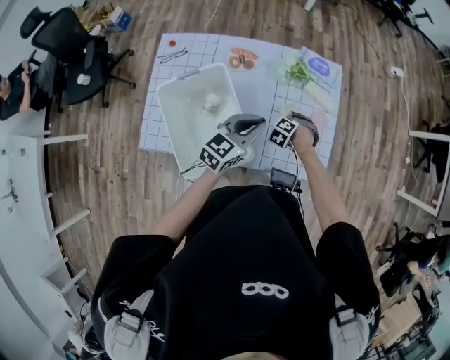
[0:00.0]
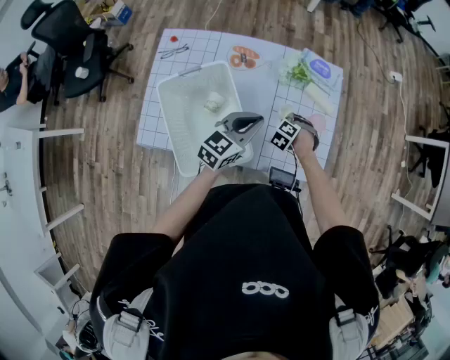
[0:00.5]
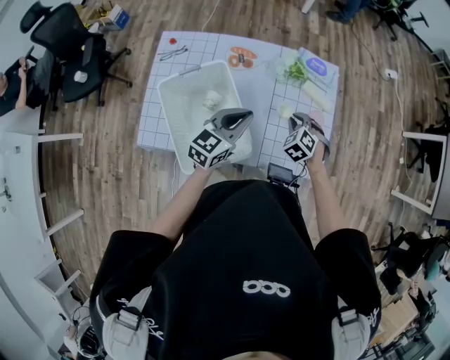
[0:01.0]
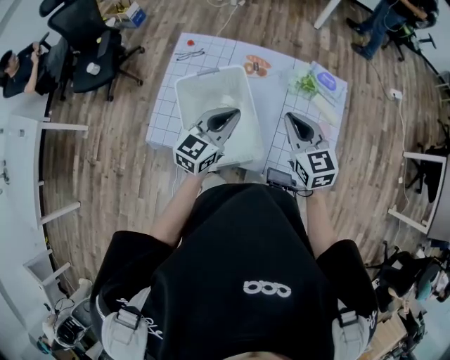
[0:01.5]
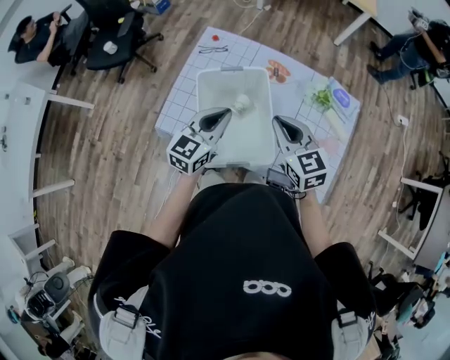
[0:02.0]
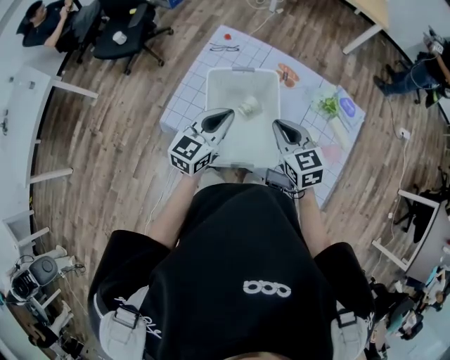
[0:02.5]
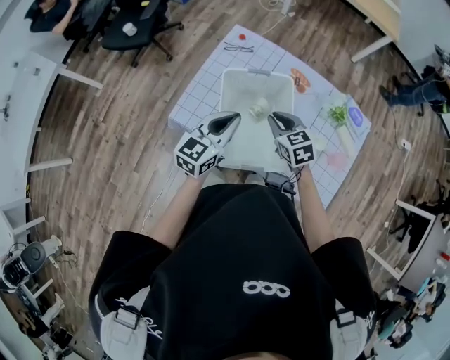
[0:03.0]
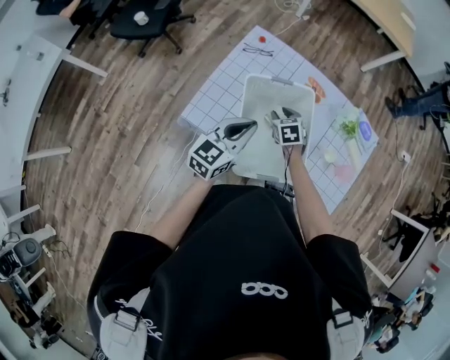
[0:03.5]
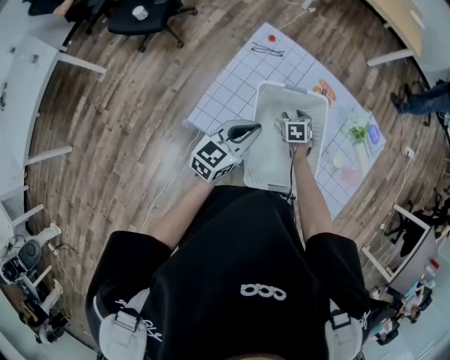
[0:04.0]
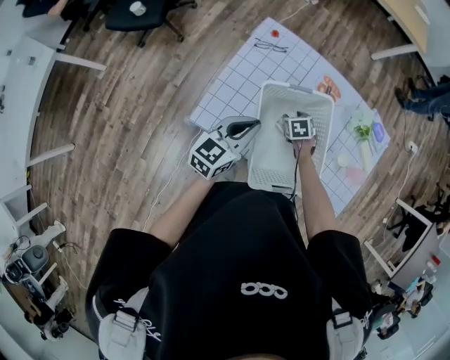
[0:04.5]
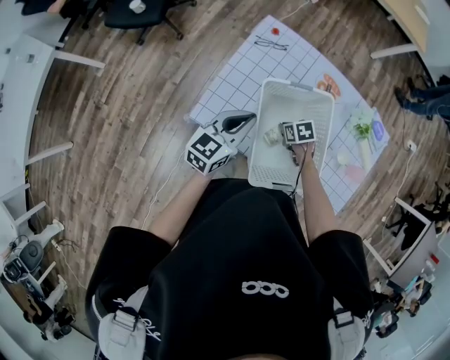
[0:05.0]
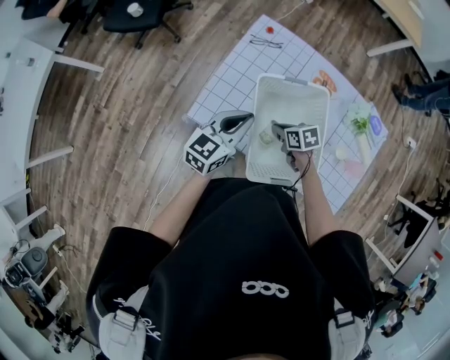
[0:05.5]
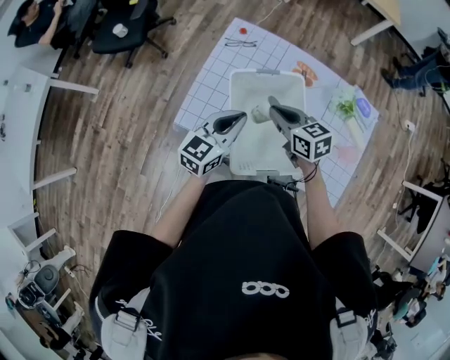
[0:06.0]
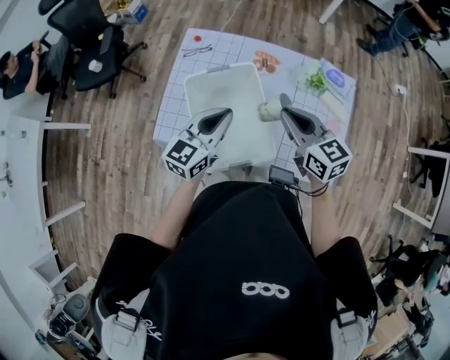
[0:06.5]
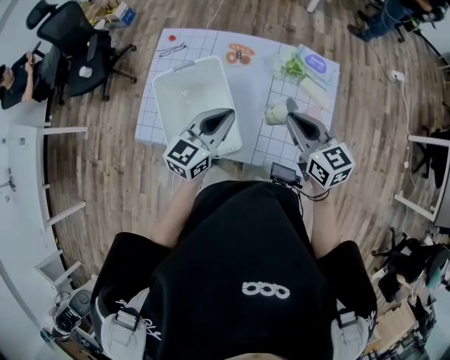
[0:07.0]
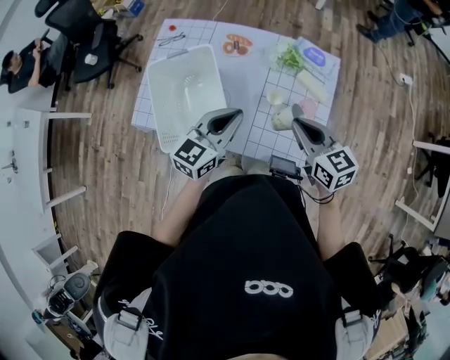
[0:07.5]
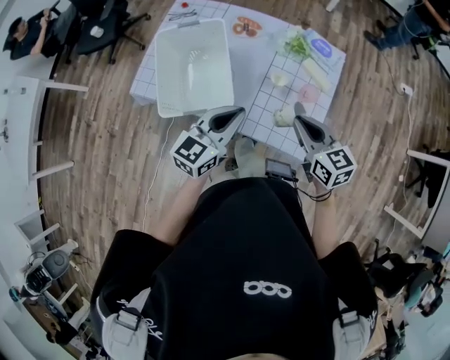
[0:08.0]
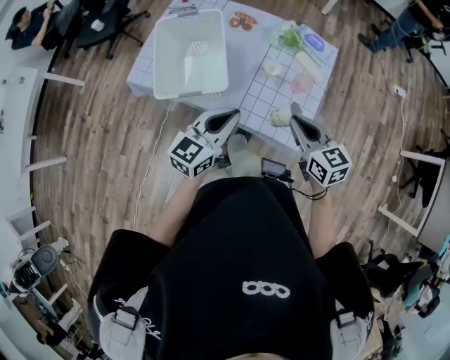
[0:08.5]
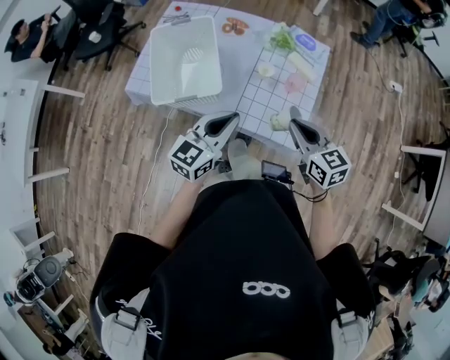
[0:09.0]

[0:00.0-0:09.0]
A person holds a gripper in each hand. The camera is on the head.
0:00.0 to 0:02.0: The right gripper heads upward, covering approximately 35 cm, and angles its fingers upward, by approximately 50 degrees, while the left gripper changes place by roughly 20 cm, and changes its angle by approximately 30 degrees.
0:02.0 to 0:04.5: The right gripper shifts about 30 cm downward, points its fingers some 50 degrees further downward, and opens its fingers. Meanwhile the left gripper is displaced to the left and downward by approximately 15 cm.
0:04.5 to 0:07.0: The left gripper ends up roughly 30 cm from where it was. Meanwhile the right gripper is displaced upward by some 30 cm, points its fingers about 50 degrees further upward, and closes its fingers.
0:07.0 to 0:09.0: Both grippers move backward and to the right, roughly 20 cm.

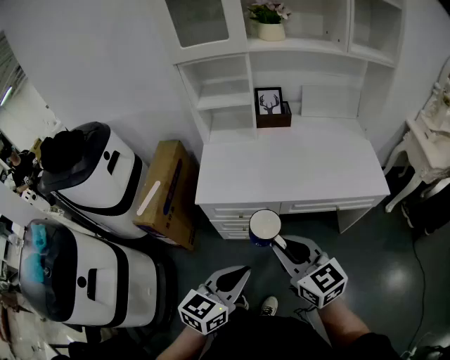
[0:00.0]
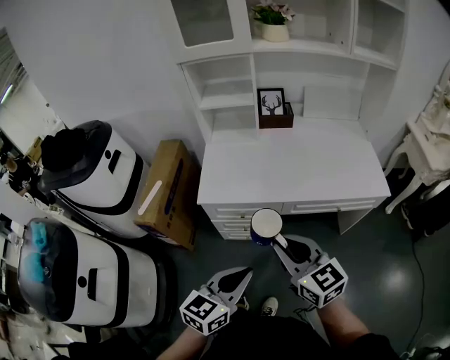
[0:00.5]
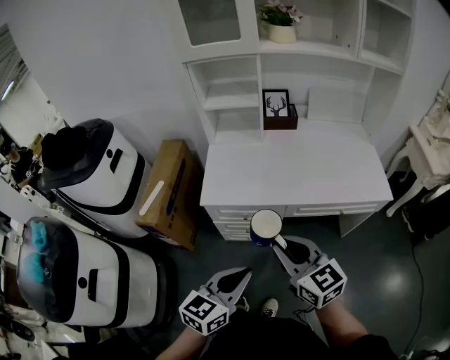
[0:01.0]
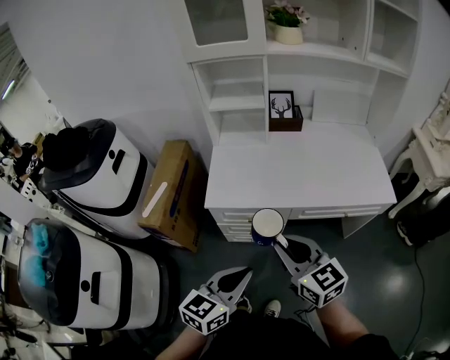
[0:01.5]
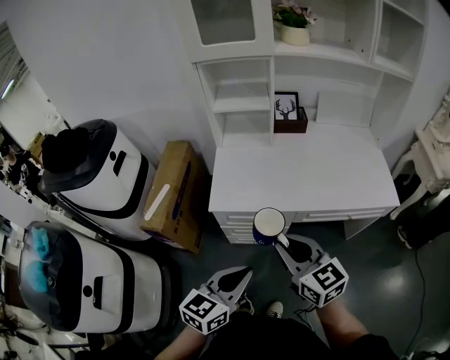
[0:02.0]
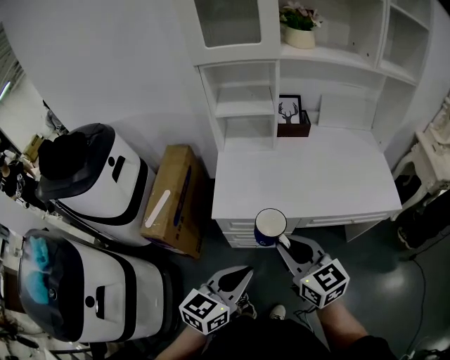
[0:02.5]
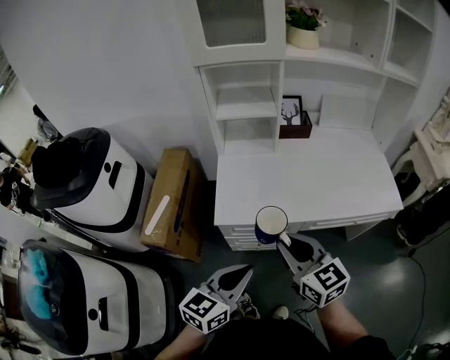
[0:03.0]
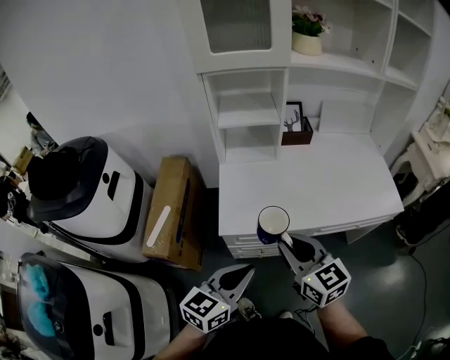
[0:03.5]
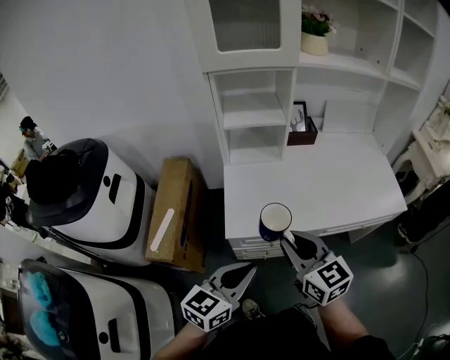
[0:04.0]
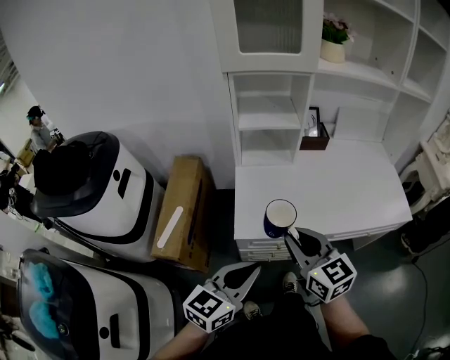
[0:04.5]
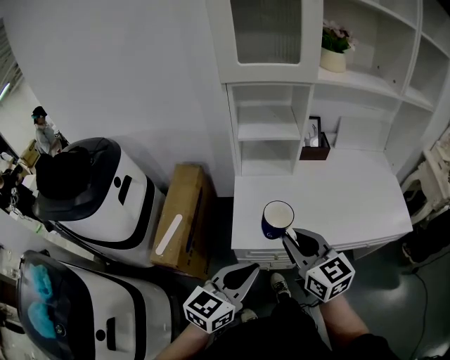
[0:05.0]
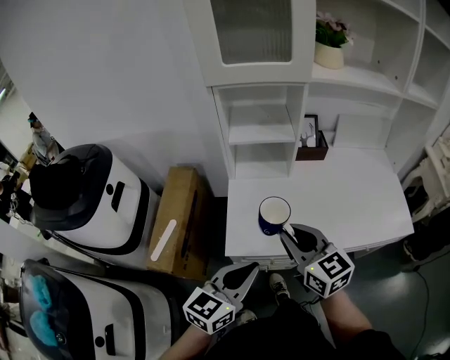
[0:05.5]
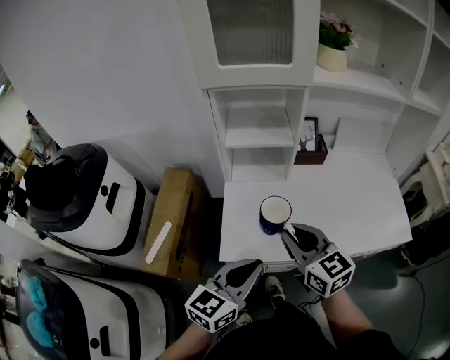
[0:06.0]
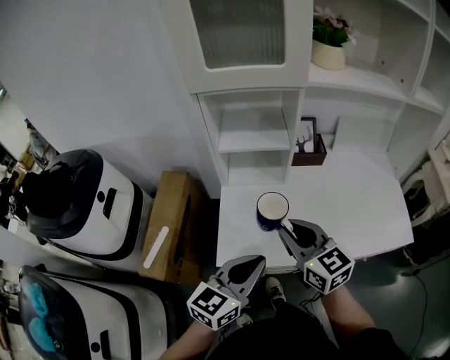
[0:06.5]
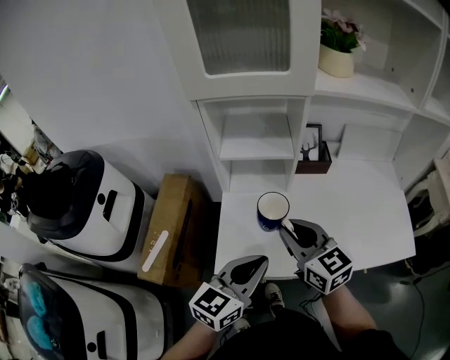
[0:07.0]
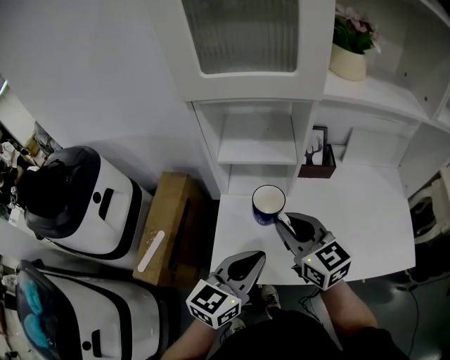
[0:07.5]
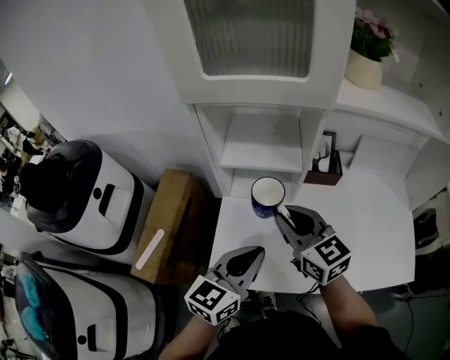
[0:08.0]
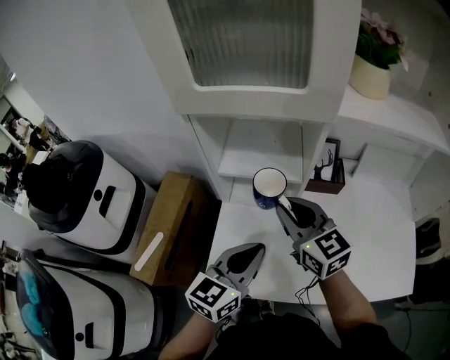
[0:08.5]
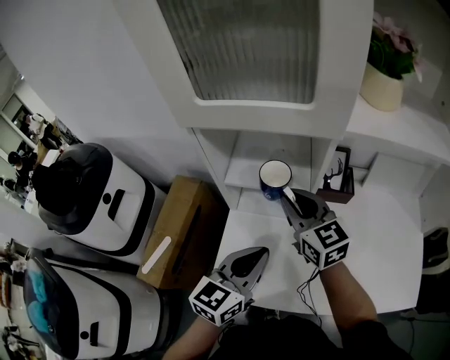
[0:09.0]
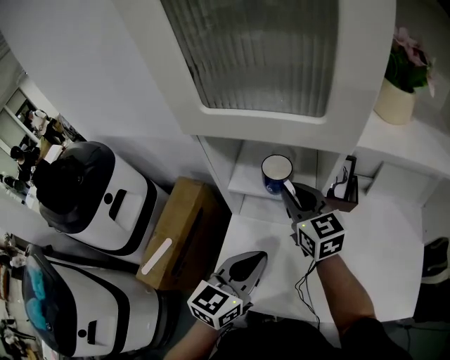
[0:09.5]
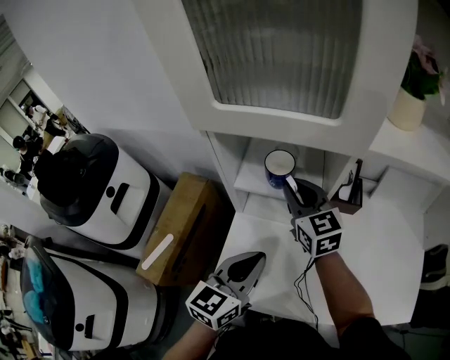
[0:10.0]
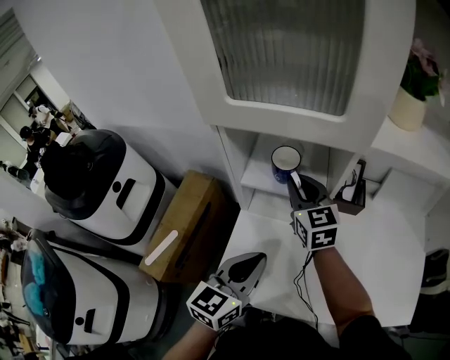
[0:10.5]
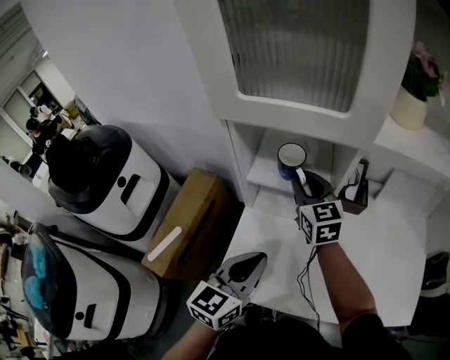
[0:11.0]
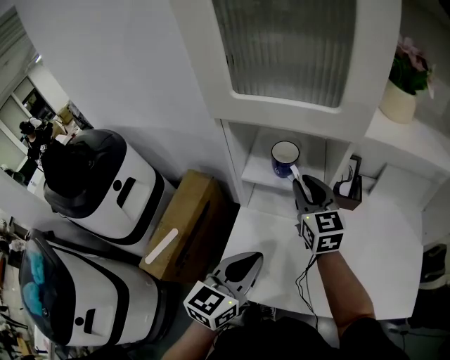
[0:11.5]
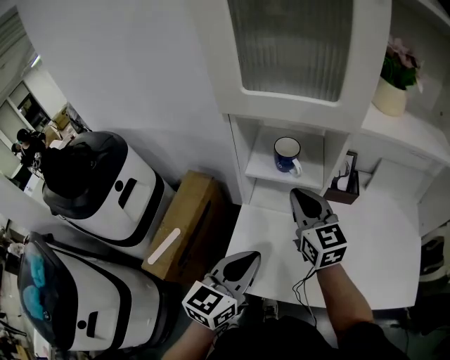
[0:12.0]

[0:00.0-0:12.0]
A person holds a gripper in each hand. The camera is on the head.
0:00.0 to 0:02.0: The left gripper heads to the left, covering about 5 cm. Meanwhile the right gripper goes about 10 cm to the left and forward.
0:02.0 to 0:04.0: The two grippers go about 15 cm forward and to the left.
0:04.0 to 0:06.0: Both grippers move forward, some 10 cm.
0:06.0 to 0:08.0: The two grippers go approximately 15 cm forward.
0:08.0 to 0:10.0: The left gripper heads forward, covering approximately 10 cm, while the right gripper shifts roughly 15 cm forward.
0:10.0 to 0:12.0: The two grippers go some 10 cm backward.

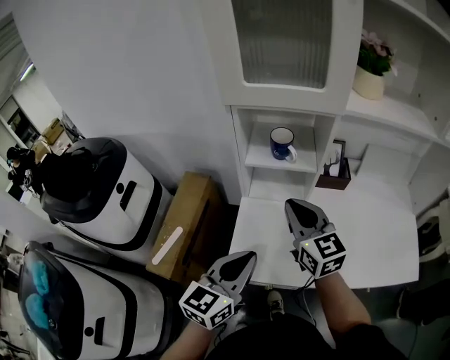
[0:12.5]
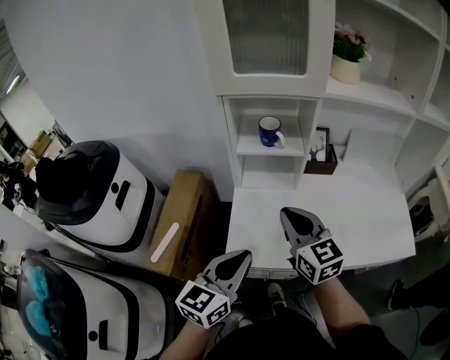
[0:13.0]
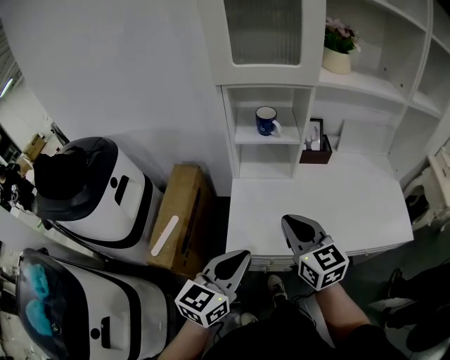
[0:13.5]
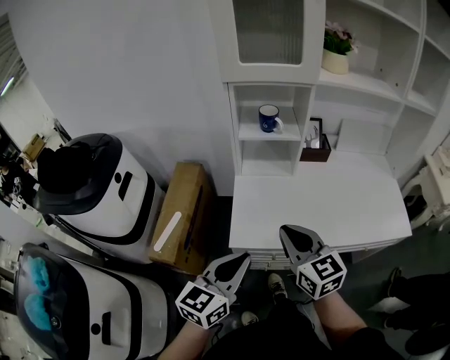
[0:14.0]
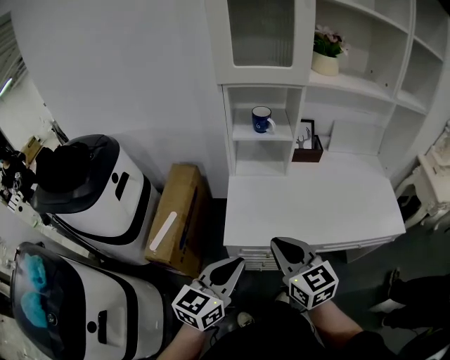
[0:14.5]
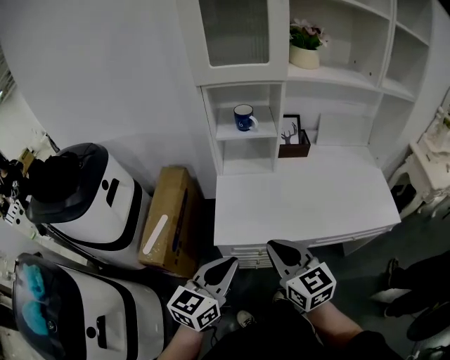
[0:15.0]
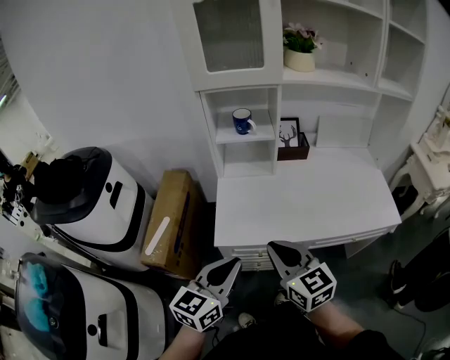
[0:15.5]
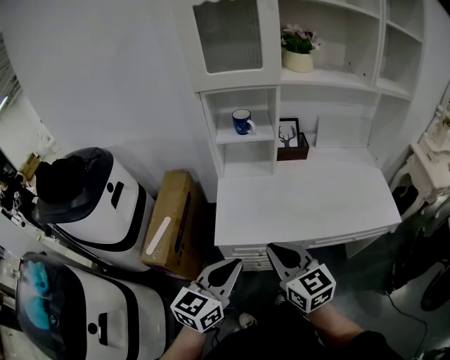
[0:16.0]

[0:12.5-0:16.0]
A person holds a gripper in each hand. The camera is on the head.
0:12.5 to 0:14.5: Both grippers travel together backward, approximately 20 cm.
0:14.5 to 0:16.0: The right gripper changes place by some 5 cm.

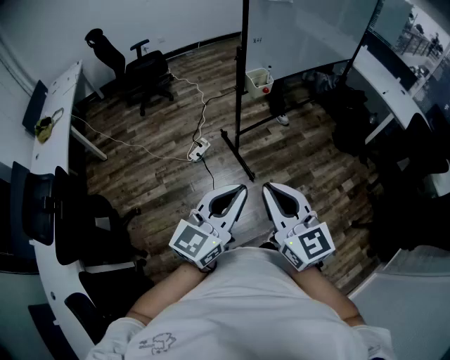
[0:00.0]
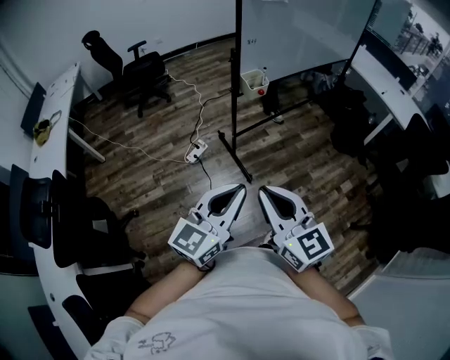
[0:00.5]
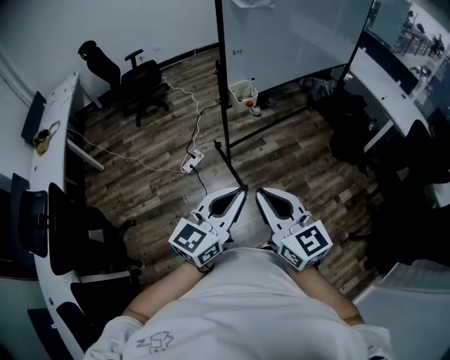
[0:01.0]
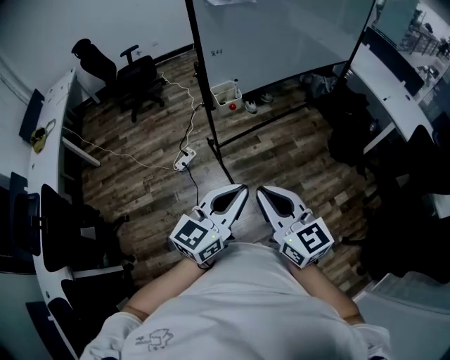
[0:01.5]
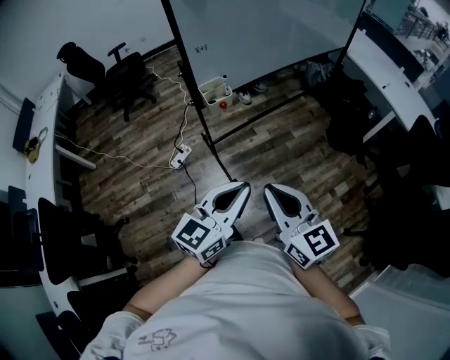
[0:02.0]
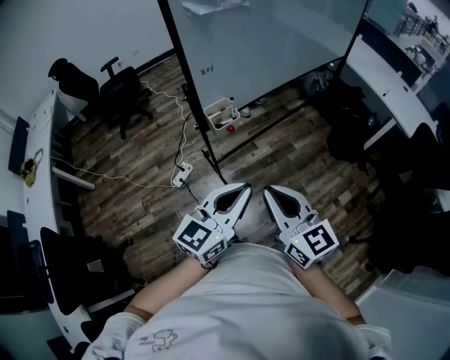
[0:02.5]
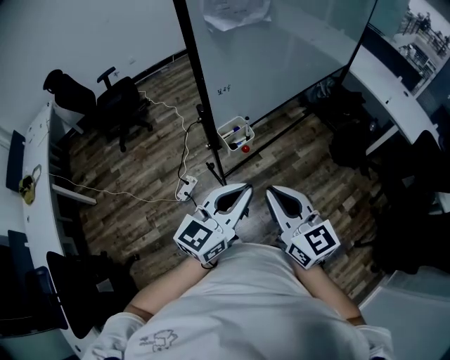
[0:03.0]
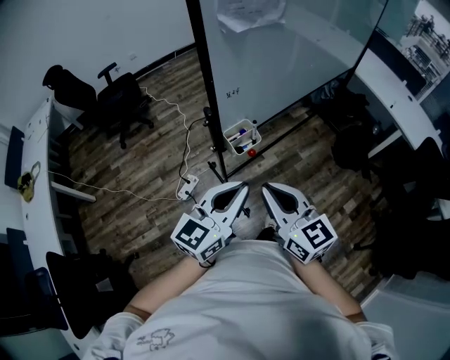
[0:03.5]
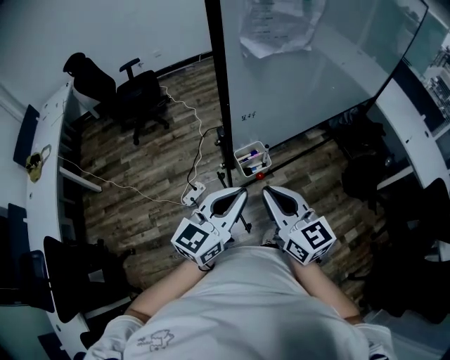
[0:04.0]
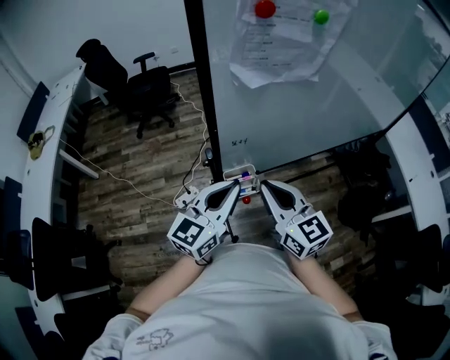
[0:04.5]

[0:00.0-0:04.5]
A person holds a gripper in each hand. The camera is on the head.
0:00.0 to 0:02.0: The two grippers go roughly 30 cm to the right and forward.
0:02.0 to 0:04.5: The grippers both shift forward by roughly 40 cm.
